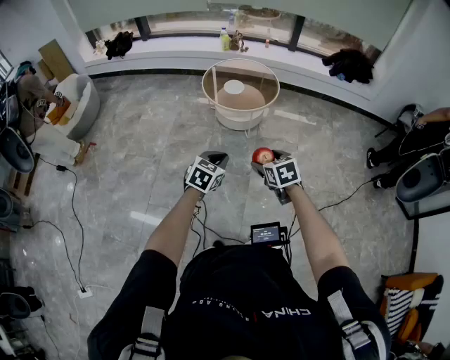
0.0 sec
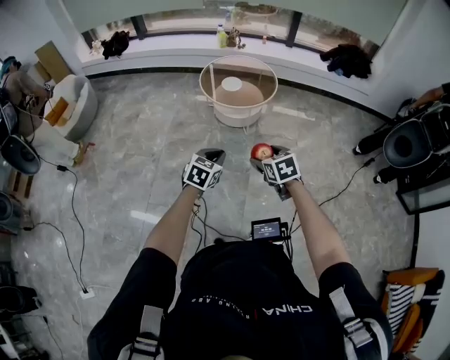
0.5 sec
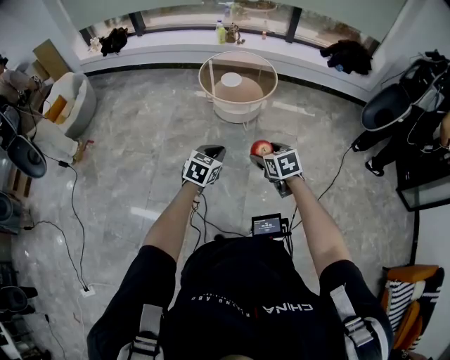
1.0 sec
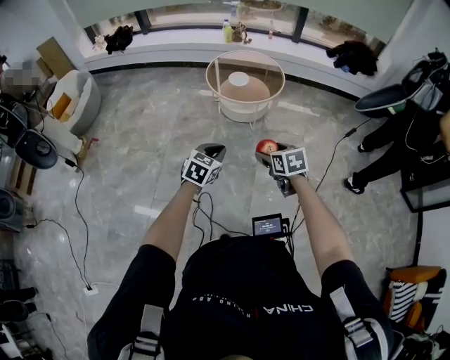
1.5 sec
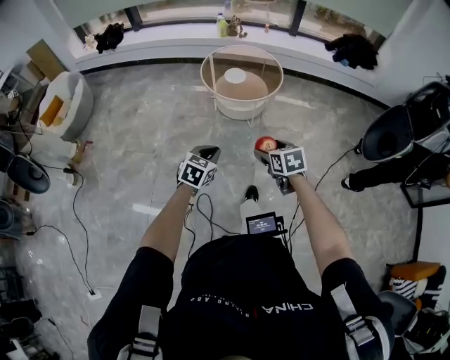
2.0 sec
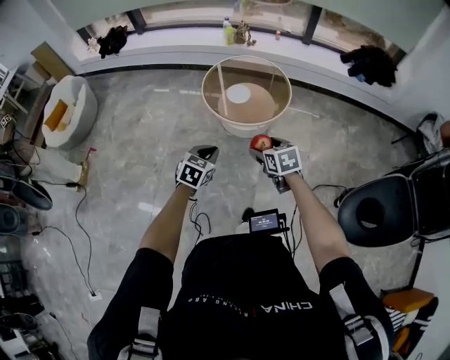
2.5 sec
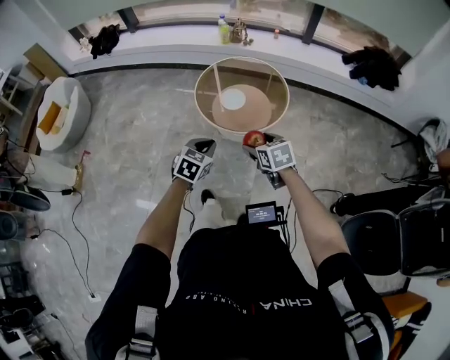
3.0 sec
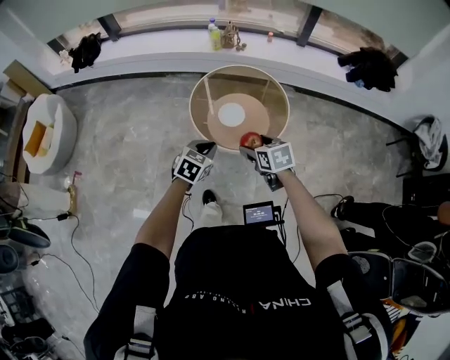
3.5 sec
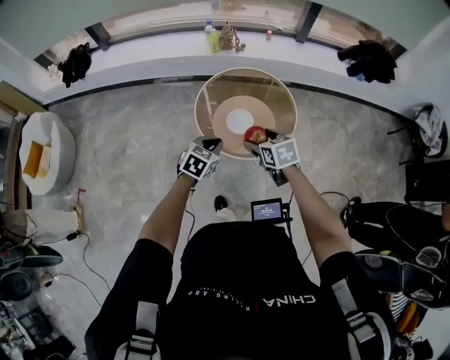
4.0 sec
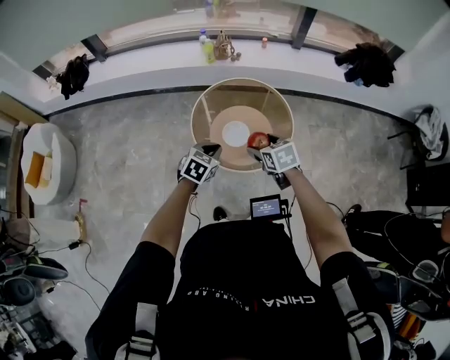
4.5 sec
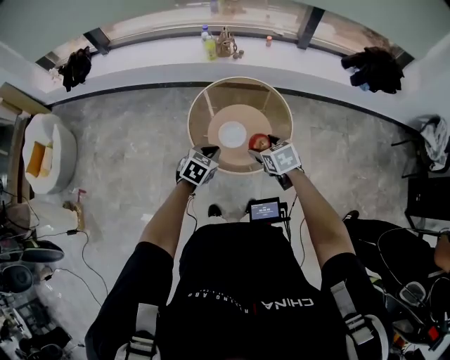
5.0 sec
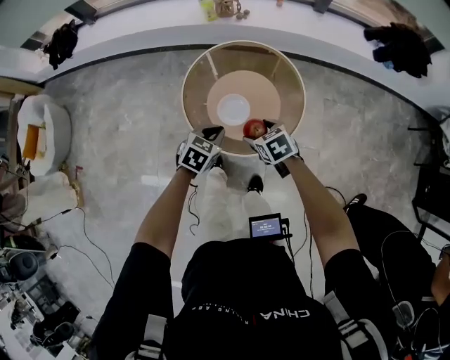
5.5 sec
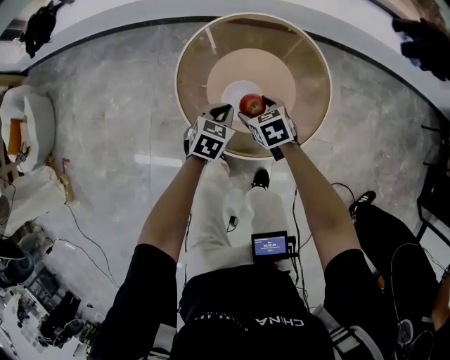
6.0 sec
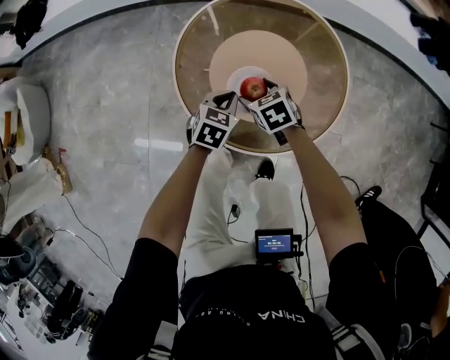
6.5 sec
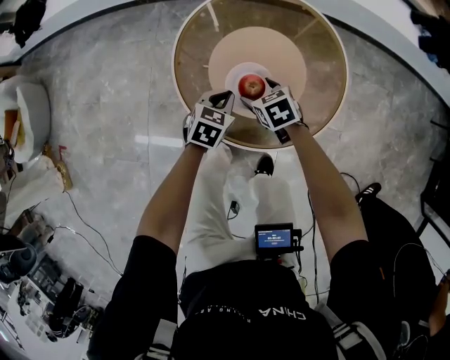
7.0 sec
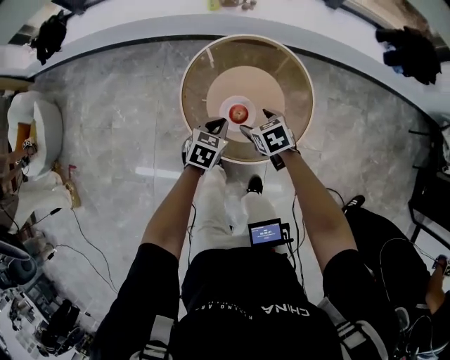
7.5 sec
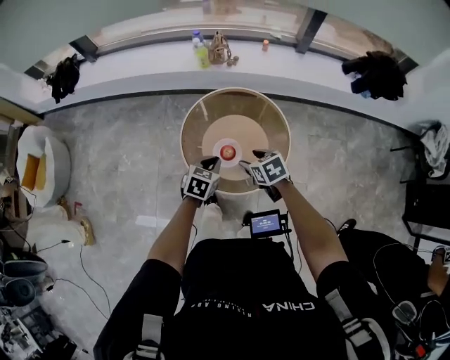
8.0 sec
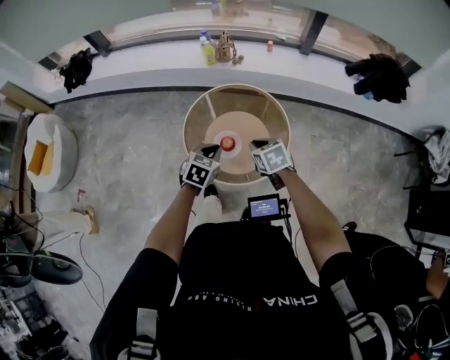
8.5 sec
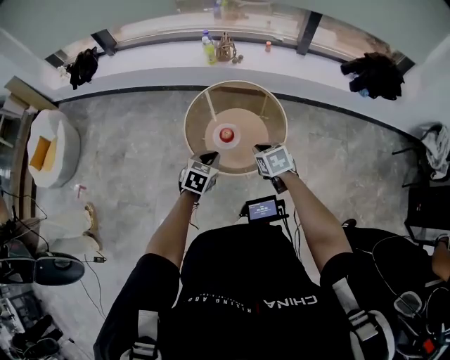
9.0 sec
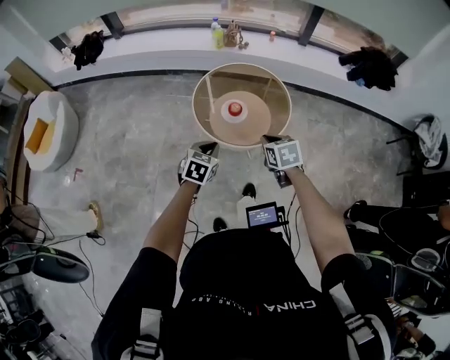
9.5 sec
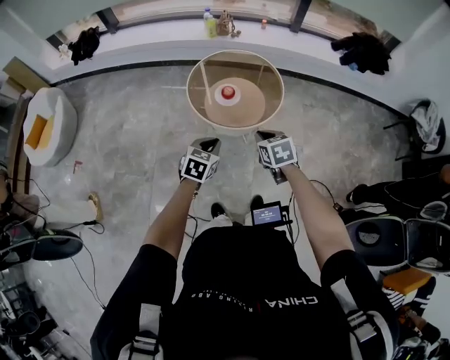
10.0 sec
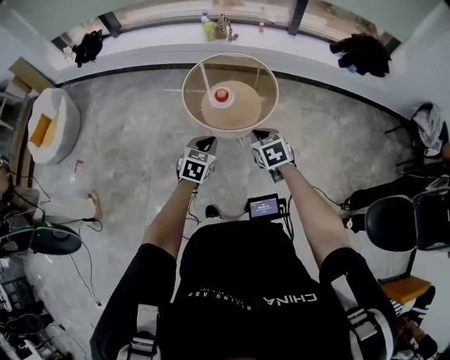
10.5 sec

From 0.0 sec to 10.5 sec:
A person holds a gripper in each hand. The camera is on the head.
From 0.0 sec to 2.0 sec: The right gripper goes approximately 5 cm forward, while the left gripper moves to the left and forward, about 10 cm.
From 2.0 sec to 4.0 sec: The two grippers travel together, forward, approximately 60 cm.
From 4.0 sec to 6.5 sec: Both grippers move downward and forward, approximately 50 cm.
From 6.5 sec to 8.5 sec: The grippers both shift upward by about 40 cm. The right gripper closes.
From 8.5 sec to 10.5 sec: Both grippers travel together backward, some 35 cm.

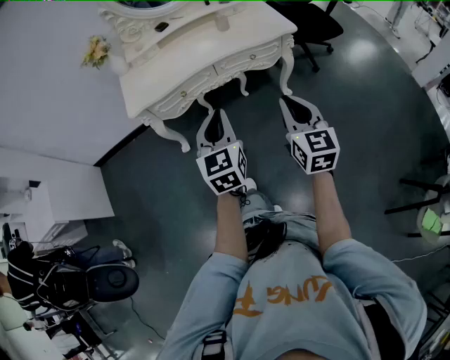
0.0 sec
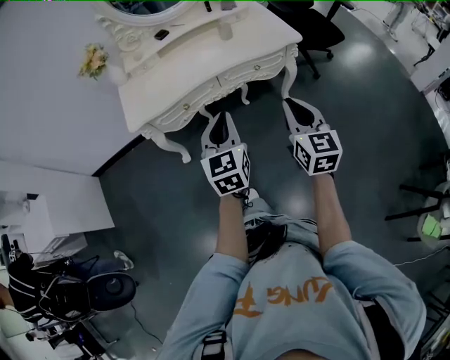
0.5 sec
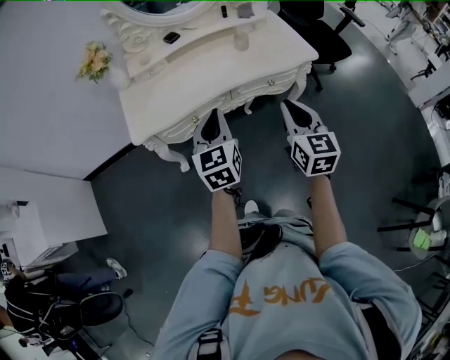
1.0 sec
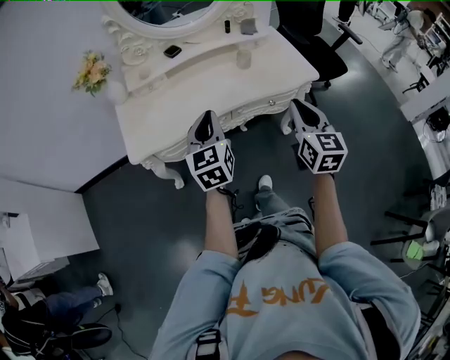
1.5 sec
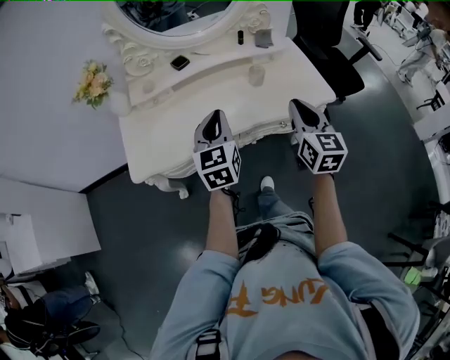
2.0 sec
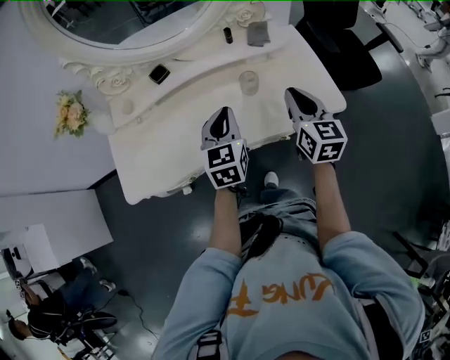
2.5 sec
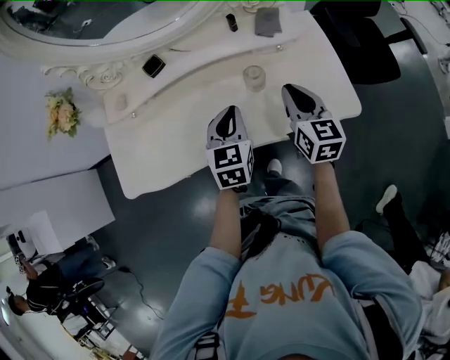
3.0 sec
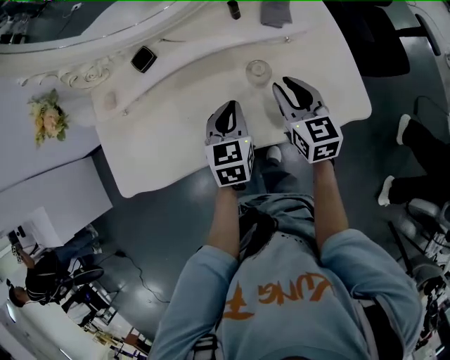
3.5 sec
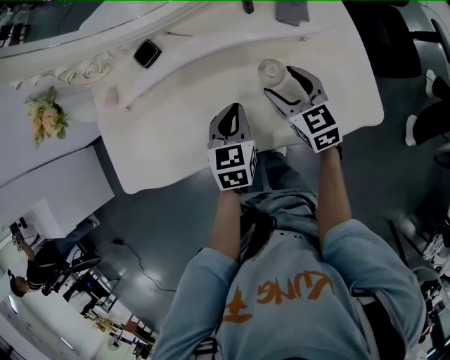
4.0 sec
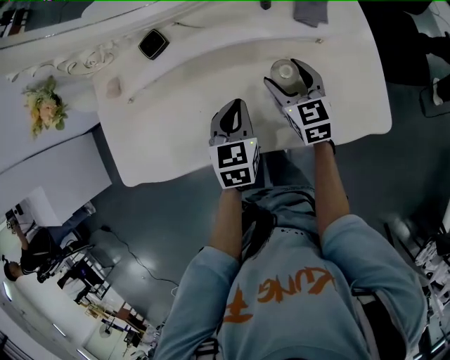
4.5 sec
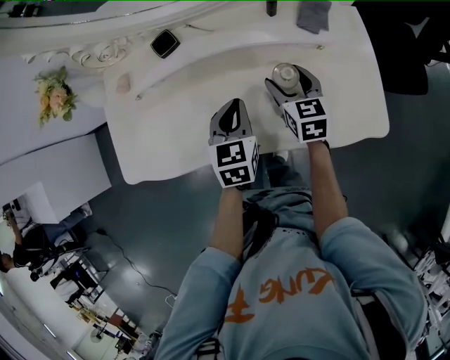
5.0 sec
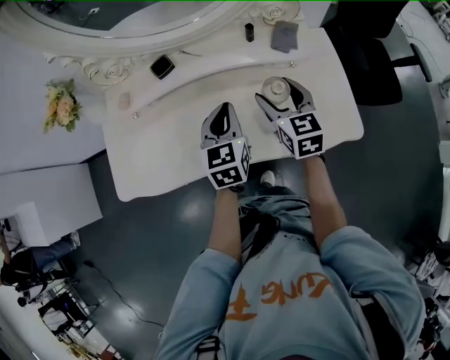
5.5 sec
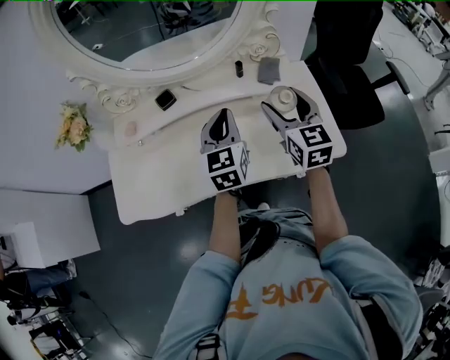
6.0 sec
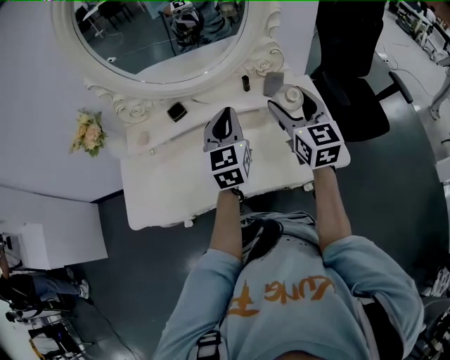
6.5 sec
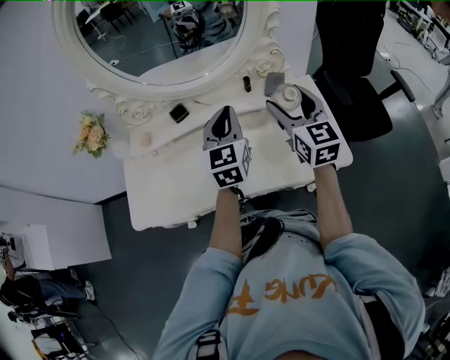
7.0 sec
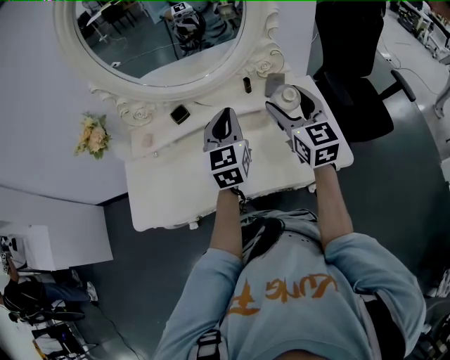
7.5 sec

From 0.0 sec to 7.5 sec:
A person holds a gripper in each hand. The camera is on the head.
From 0.0 sec to 2.0 sec: Both grippers move forward, some 35 cm.
From 2.0 sec to 4.0 sec: The left gripper moves forward, downward and to the right, about 30 cm, and changes its angle by roughly 30 degrees; the right gripper heads forward and downward, covering about 35 cm, changes its angle by about 30 degrees, and opens its fingers.
From 4.0 sec to 5.5 sec: The grippers both shift upward by about 10 cm.
From 5.5 sec to 7.5 sec: The grippers both shift upward by approximately 15 cm.

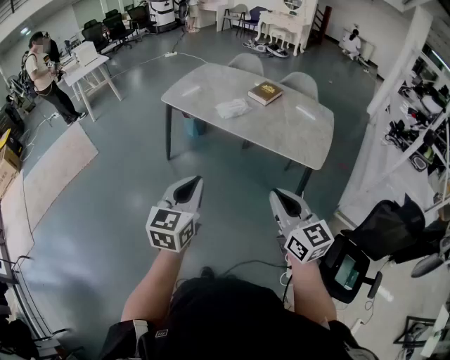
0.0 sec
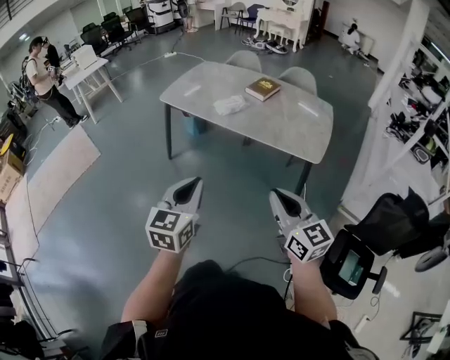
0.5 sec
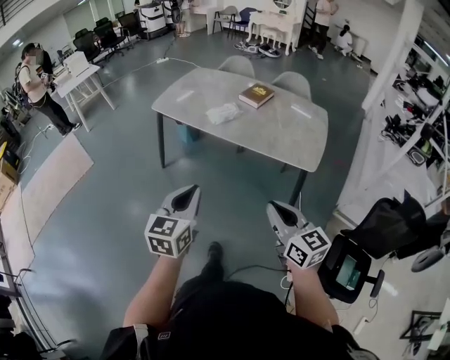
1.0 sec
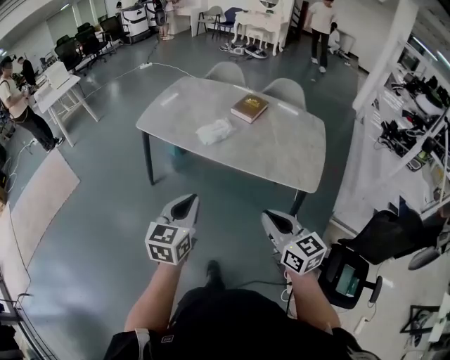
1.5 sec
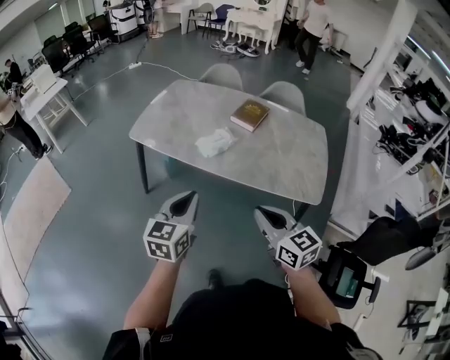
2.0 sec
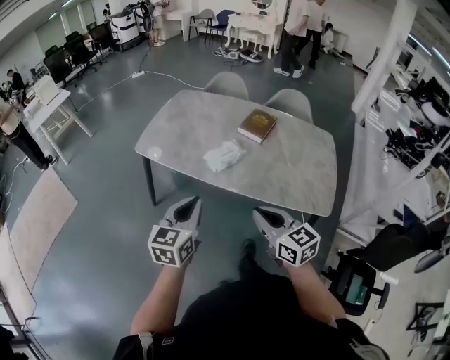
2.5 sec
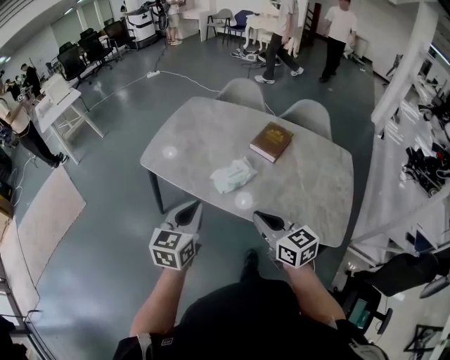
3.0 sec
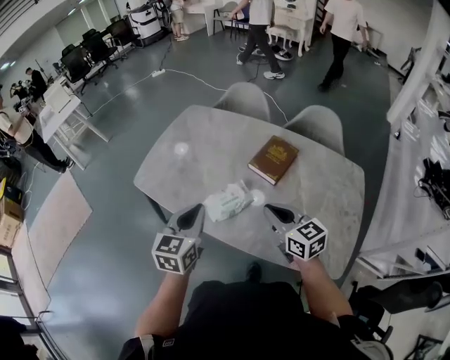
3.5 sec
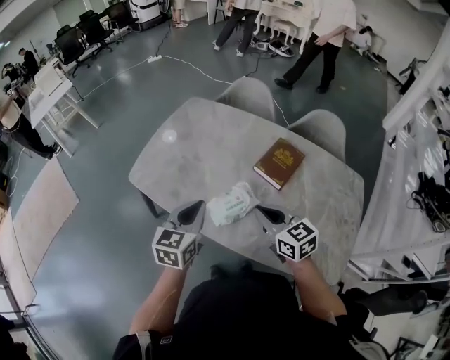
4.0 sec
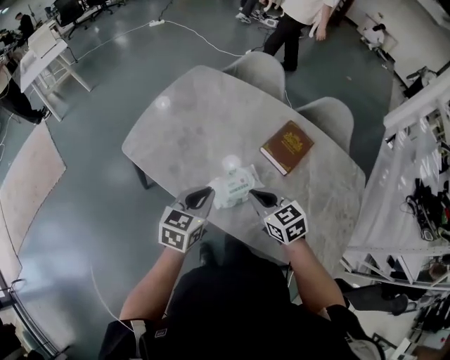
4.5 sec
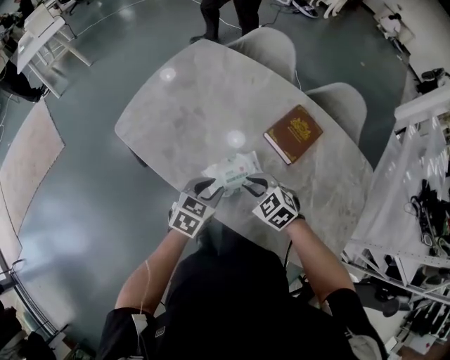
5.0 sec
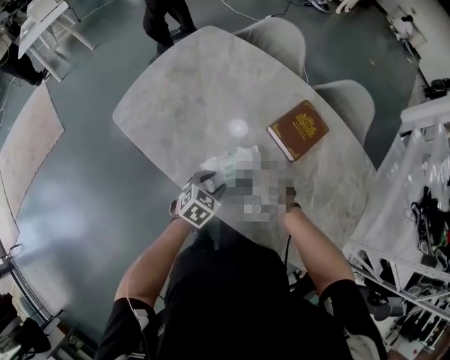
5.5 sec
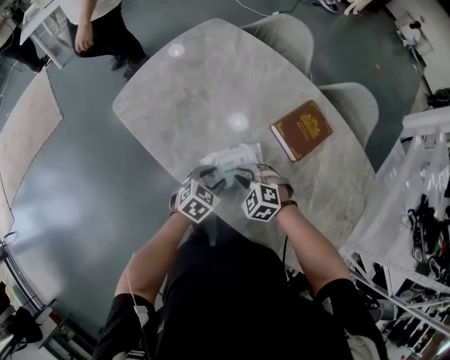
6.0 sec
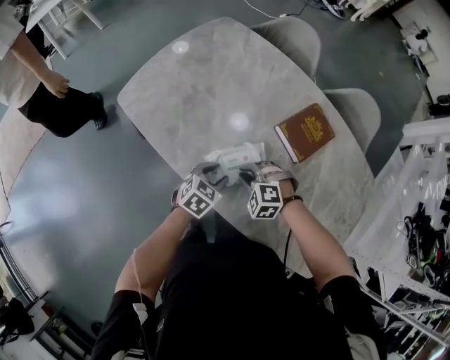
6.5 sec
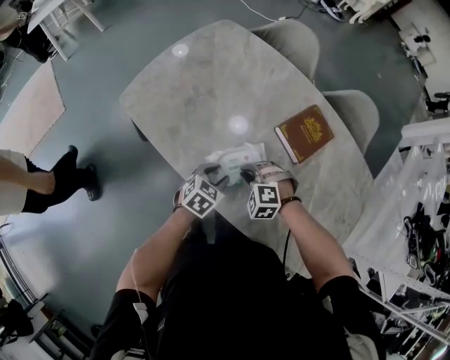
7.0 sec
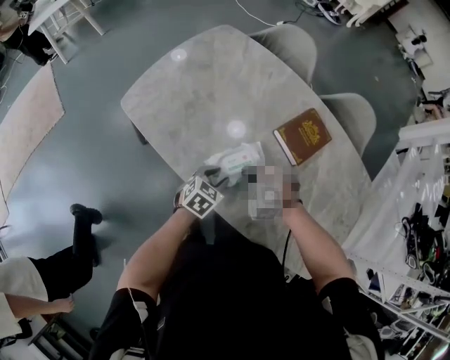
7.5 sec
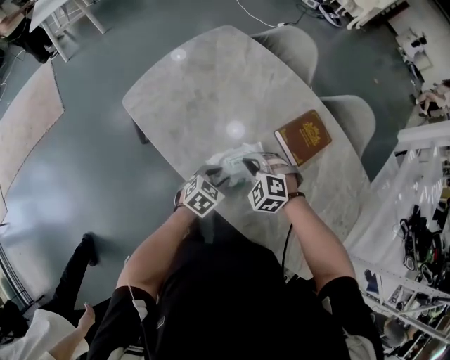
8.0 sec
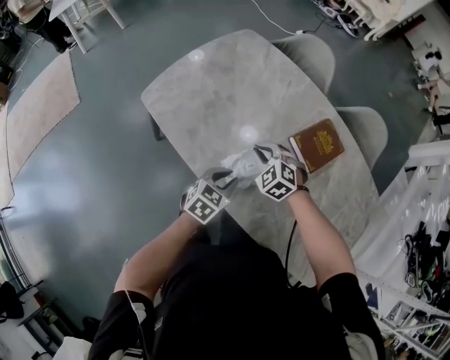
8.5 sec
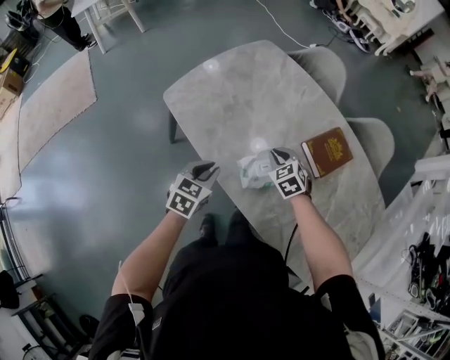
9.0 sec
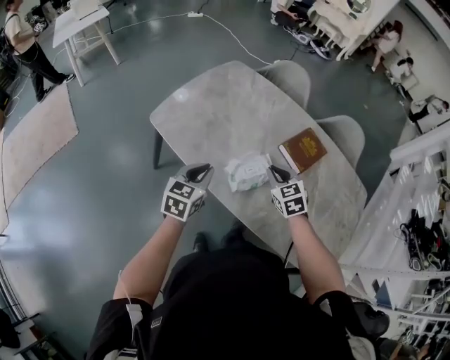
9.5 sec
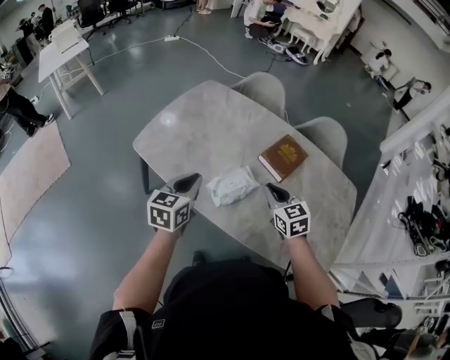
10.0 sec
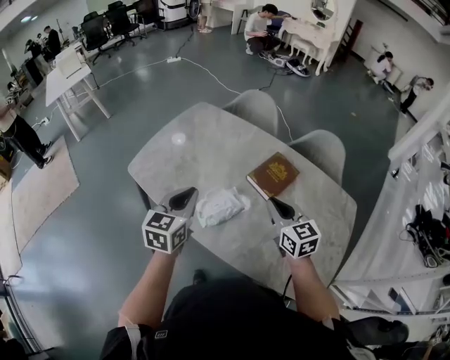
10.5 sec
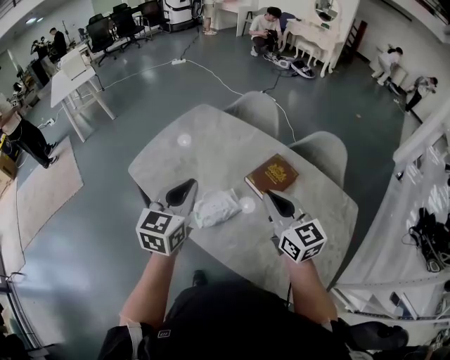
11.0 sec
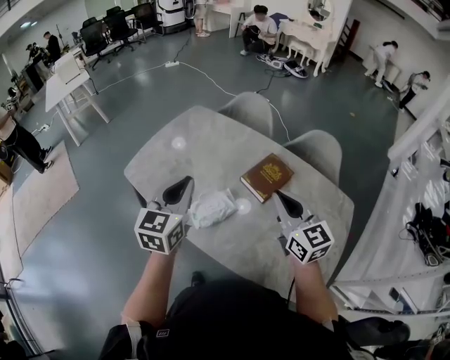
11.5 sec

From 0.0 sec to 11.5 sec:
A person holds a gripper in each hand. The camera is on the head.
From 0.0 sec to 2.0 sec: The grippers both shift forward by about 30 cm.
From 2.0 sec to 4.0 sec: The grippers both shift forward by some 40 cm.
From 4.0 sec to 6.0 sec: Both grippers travel together downward, some 25 cm. The left gripper turns by approximately 30 degrees, and opens, while the right gripper twists some 50 degrees counterclockwise, seen from behind, and opens up.
From 6.0 sec to 7.5 sec: The grippers stay close to where they were, moving slightly.
From 7.5 sec to 9.5 sec: The left gripper is displaced upward and to the left by roughly 20 cm, rotates approximately 30 degrees, and closes its fingers. The right gripper goes approximately 15 cm upward, and rolls clockwise, seen from behind, by about 50 degrees.
From 9.5 sec to 11.5 sec: The grippers both shift upward and to the right by about 25 cm. The right gripper angles its fingers upward, by about 30 degrees.
